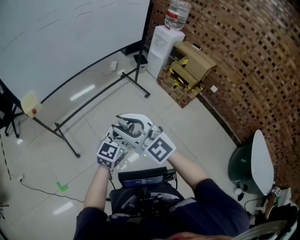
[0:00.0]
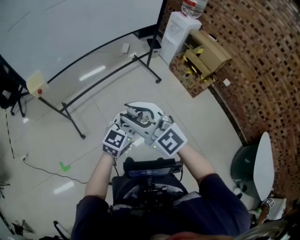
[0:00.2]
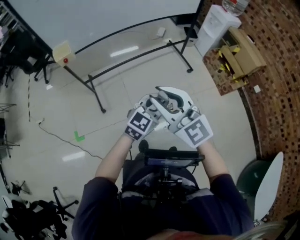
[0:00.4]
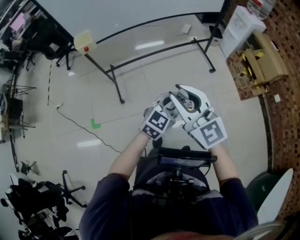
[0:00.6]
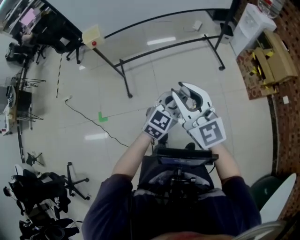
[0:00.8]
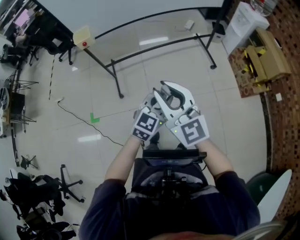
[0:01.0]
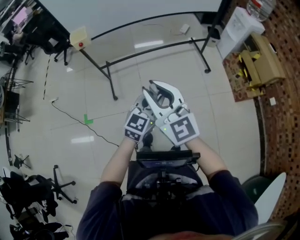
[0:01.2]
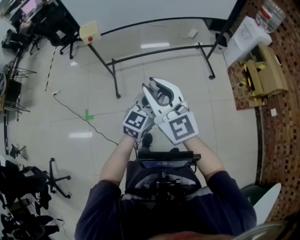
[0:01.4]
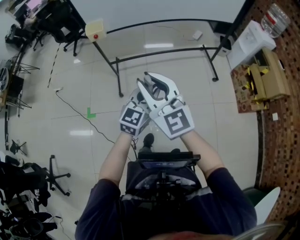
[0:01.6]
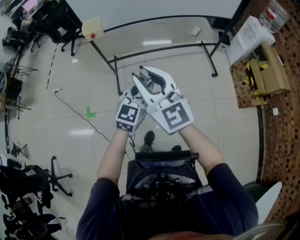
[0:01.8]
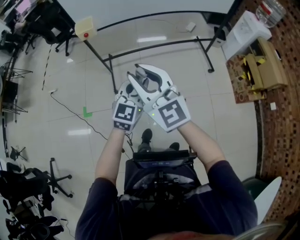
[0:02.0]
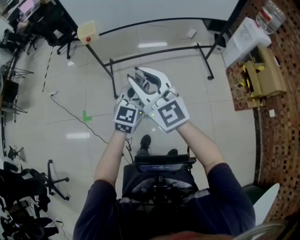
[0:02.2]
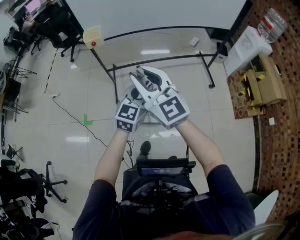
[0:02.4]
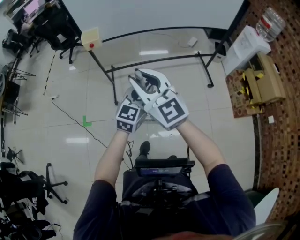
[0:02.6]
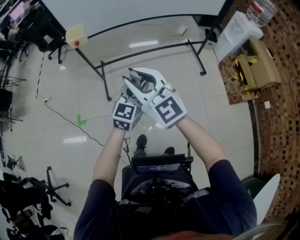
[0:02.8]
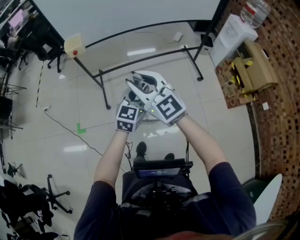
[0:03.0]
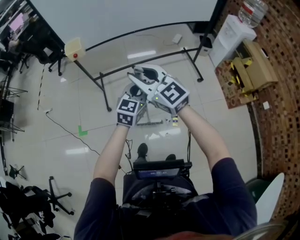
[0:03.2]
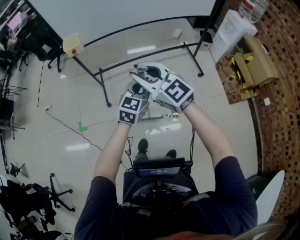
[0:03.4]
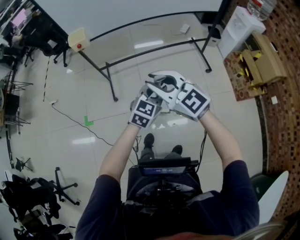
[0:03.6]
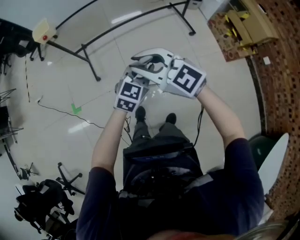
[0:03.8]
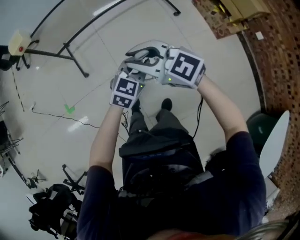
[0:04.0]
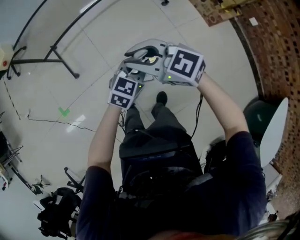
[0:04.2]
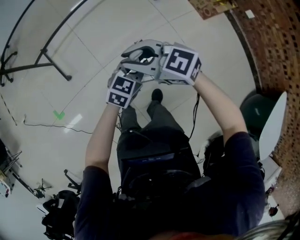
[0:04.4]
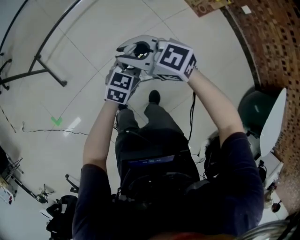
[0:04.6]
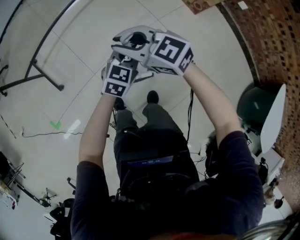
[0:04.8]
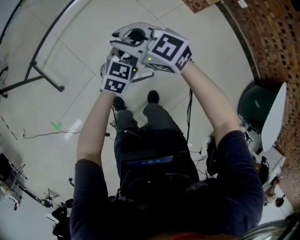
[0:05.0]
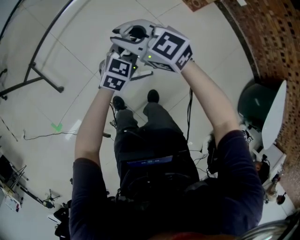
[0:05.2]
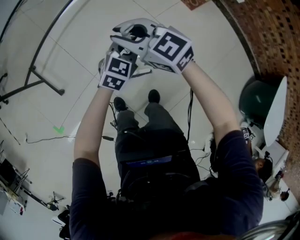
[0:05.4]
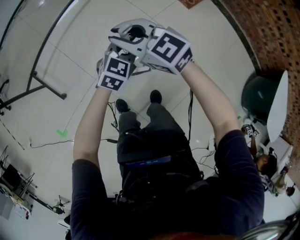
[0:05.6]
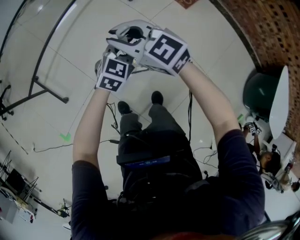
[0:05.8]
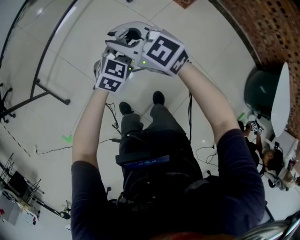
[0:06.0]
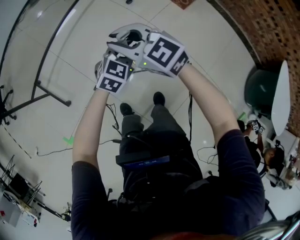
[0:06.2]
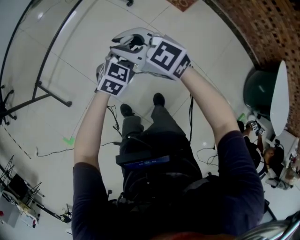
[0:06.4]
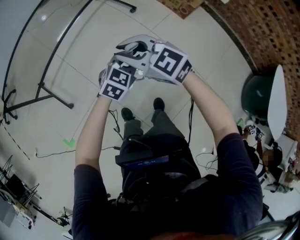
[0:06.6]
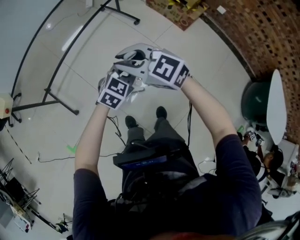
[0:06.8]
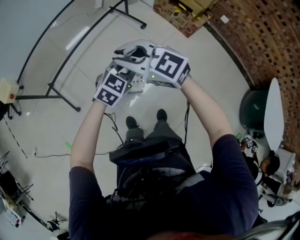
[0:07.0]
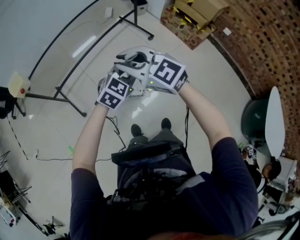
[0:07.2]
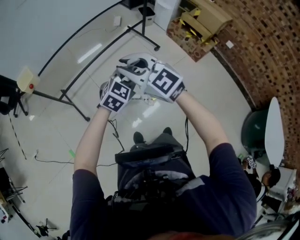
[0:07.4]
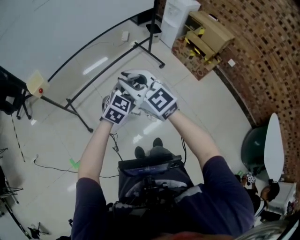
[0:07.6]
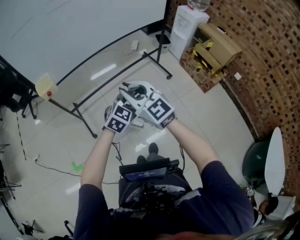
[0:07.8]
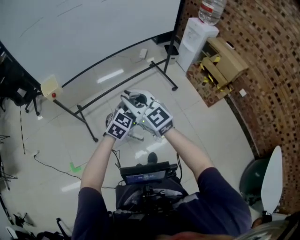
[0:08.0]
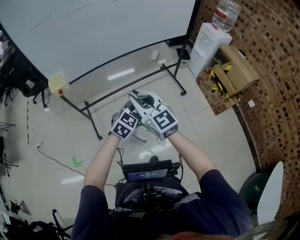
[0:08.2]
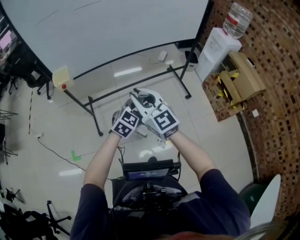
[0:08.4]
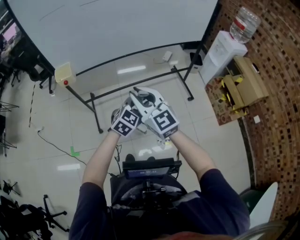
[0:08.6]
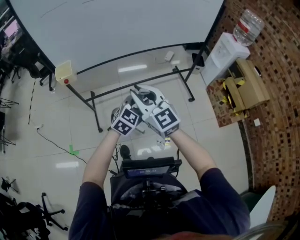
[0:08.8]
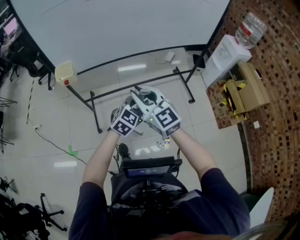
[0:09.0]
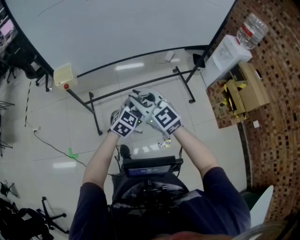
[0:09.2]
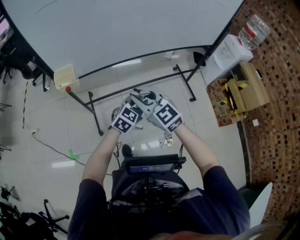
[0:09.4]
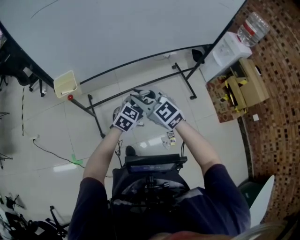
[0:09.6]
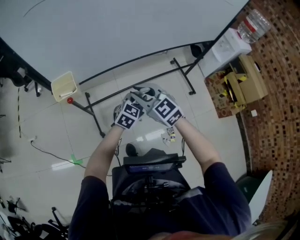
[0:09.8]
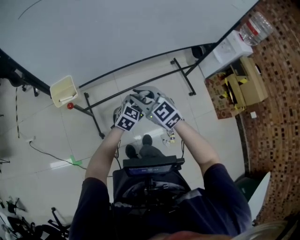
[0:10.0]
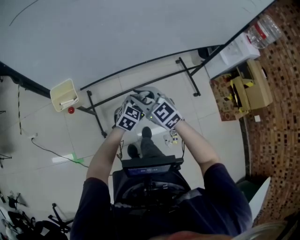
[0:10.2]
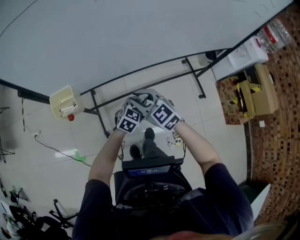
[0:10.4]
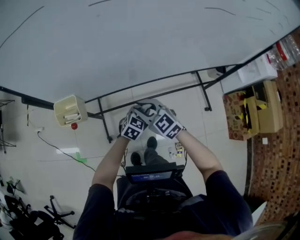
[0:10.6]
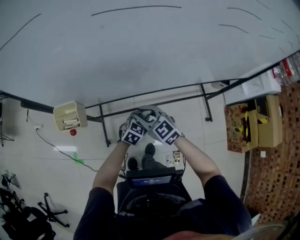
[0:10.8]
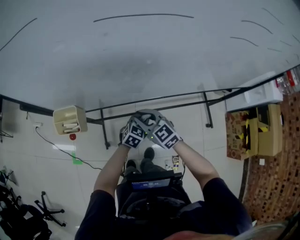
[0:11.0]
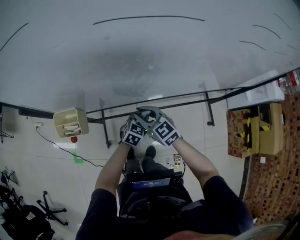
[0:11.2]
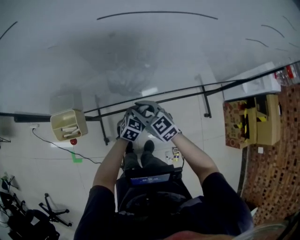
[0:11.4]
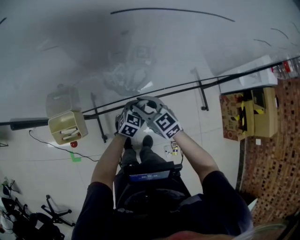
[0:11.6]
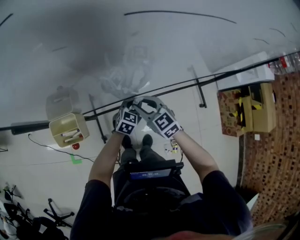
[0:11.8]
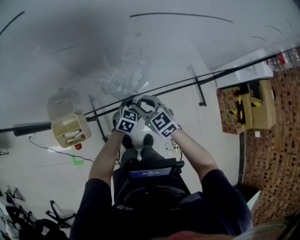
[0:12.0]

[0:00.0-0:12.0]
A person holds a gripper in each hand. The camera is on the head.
0:00.0 to 0:01.6: The right gripper travels to the right and back again, some 5 cm each way, and turns by approximately 20 degrees; the left gripper shifts approximately 5 cm to the left, and rotates about 30 degrees.
0:01.6 to 0:03.0: The two grippers go some 5 cm forward.
0:03.0 to 0:04.4: The right gripper shifts approximately 30 cm downward and to the right, and turns by about 30 degrees. The left gripper travels downward, to the right and backward by roughly 35 cm, and swivels about 40 degrees.
0:04.4 to 0:06.0: Both grippers travel together forward and to the right, approximately 10 cm. The left gripper changes its angle by some 20 degrees; the right gripper turns by roughly 30 degrees.
0:06.0 to 0:07.6: Both grippers travel together to the left and upward, some 35 cm.
0:07.6 to 0:09.0: Both grippers move forward and to the left, about 15 cm.
0:09.0 to 0:10.4: Both grippers move forward, downward and to the left, roughly 30 cm. The right gripper swivels about 20 degrees.
0:10.4 to 0:12.0: The grippers both shift forward and downward by some 15 cm.

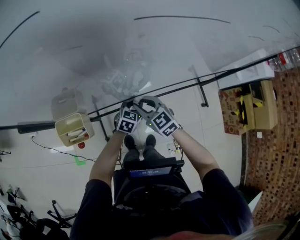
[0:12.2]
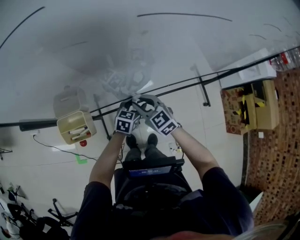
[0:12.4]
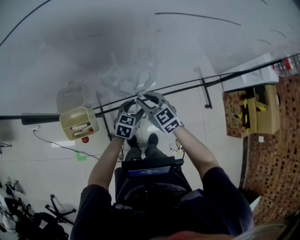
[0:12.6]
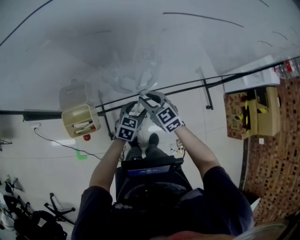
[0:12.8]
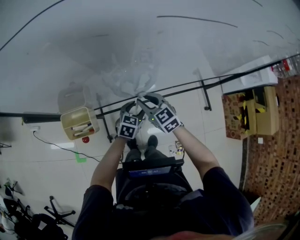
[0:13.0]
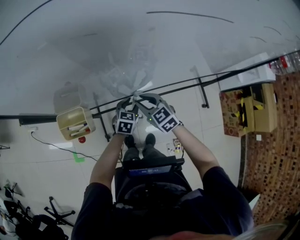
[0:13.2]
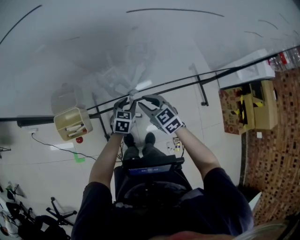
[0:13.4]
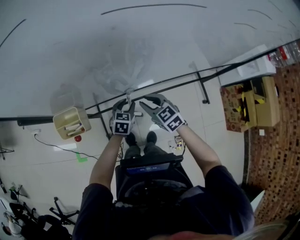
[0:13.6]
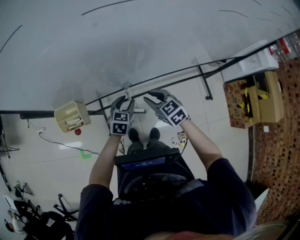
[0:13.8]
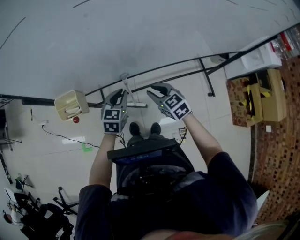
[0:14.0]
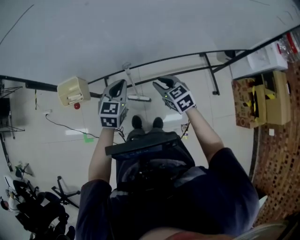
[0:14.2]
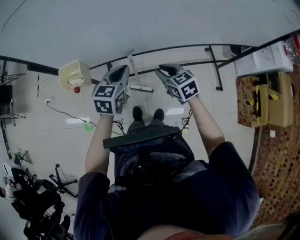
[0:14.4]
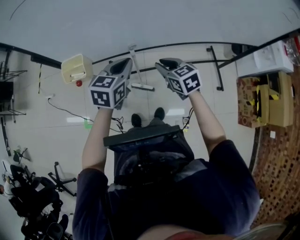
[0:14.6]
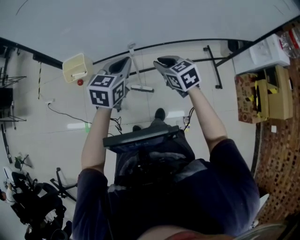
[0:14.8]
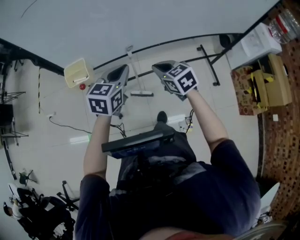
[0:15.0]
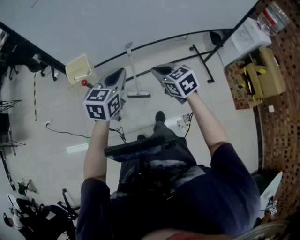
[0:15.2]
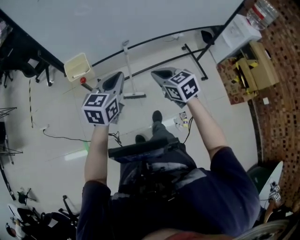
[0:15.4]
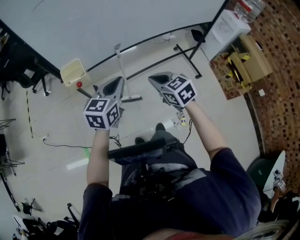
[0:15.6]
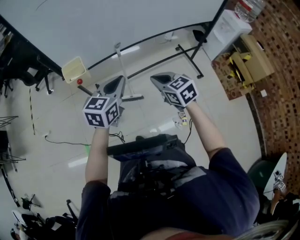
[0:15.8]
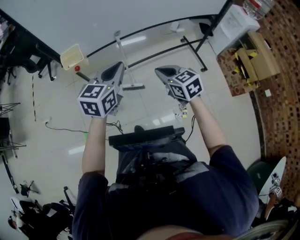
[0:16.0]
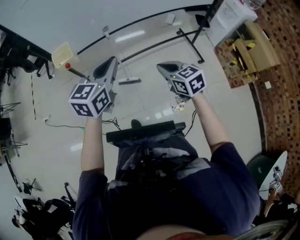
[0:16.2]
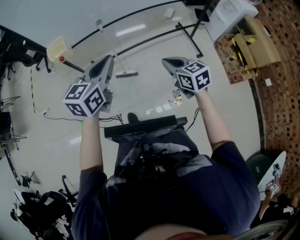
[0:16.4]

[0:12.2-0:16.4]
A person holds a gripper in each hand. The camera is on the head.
0:12.2 to 0:13.6: The left gripper opens and closes again.
0:13.6 to 0:15.0: The right gripper moves backward and upward, about 15 cm, and closes up, while the left gripper is displaced upward and backward by about 30 cm, and closes its fingers.
0:15.0 to 0:16.4: The right gripper is displaced backward and to the right by about 30 cm. The left gripper goes roughly 20 cm backward.

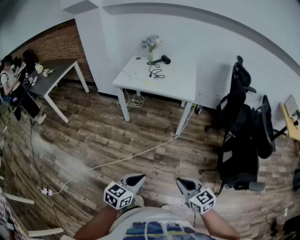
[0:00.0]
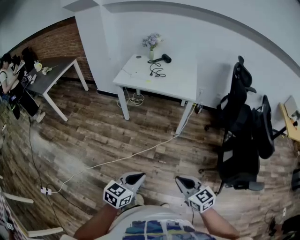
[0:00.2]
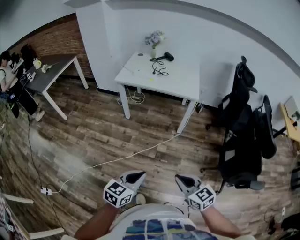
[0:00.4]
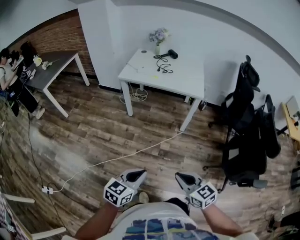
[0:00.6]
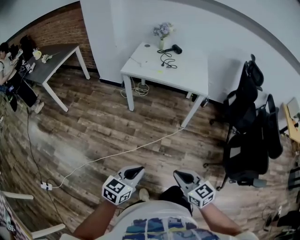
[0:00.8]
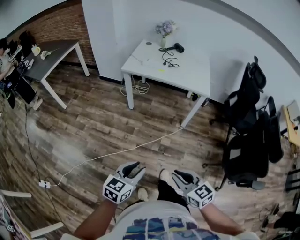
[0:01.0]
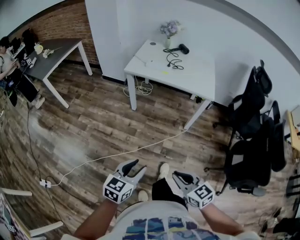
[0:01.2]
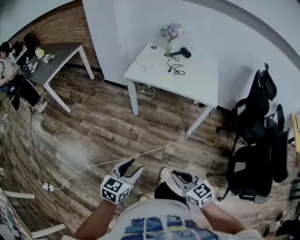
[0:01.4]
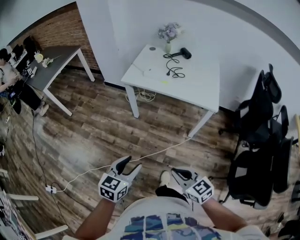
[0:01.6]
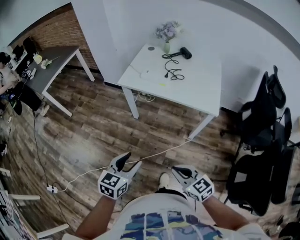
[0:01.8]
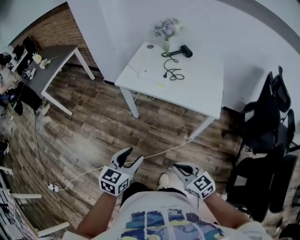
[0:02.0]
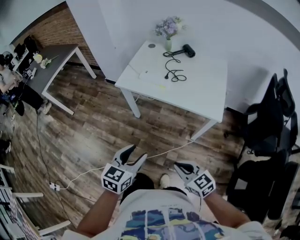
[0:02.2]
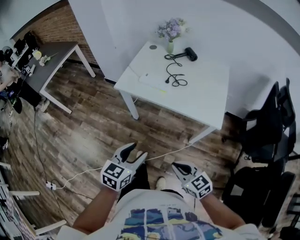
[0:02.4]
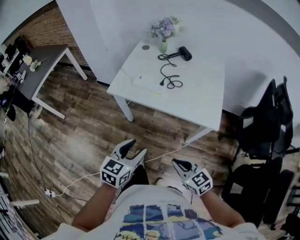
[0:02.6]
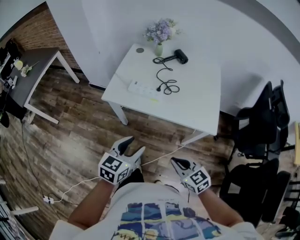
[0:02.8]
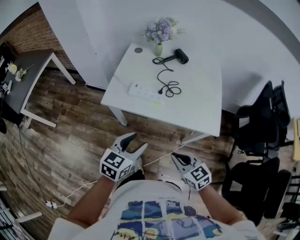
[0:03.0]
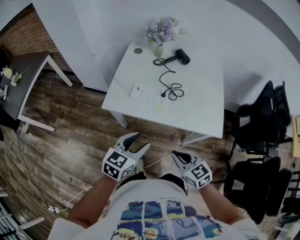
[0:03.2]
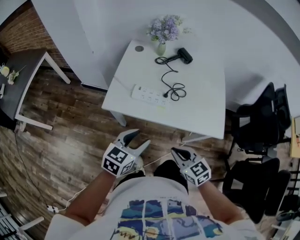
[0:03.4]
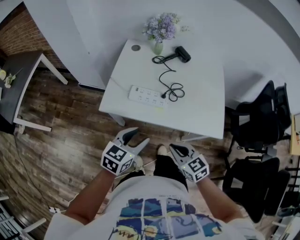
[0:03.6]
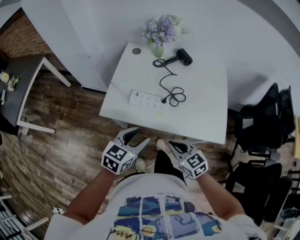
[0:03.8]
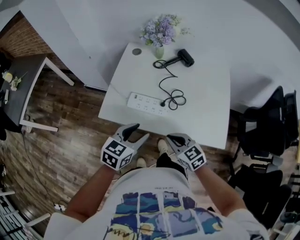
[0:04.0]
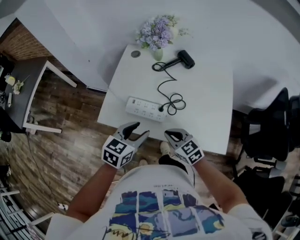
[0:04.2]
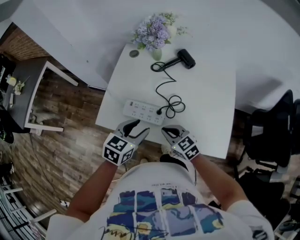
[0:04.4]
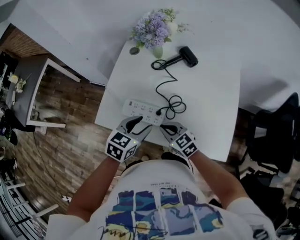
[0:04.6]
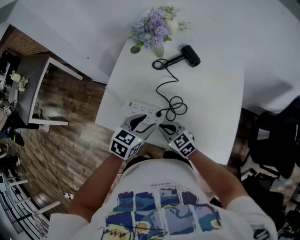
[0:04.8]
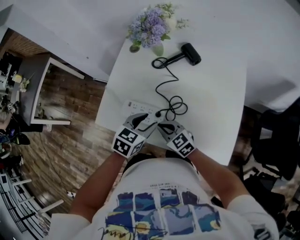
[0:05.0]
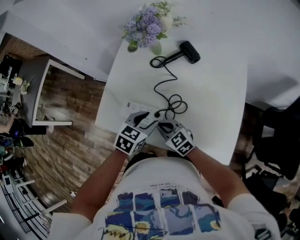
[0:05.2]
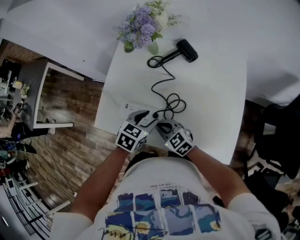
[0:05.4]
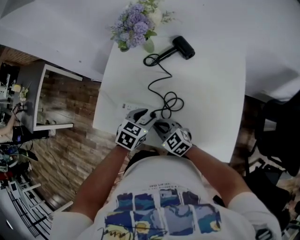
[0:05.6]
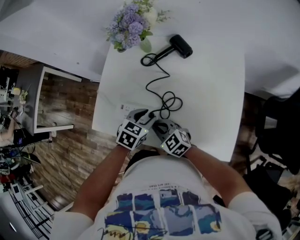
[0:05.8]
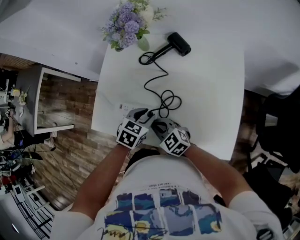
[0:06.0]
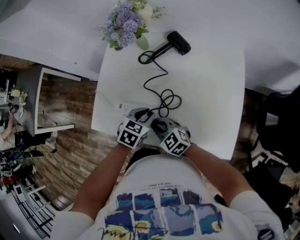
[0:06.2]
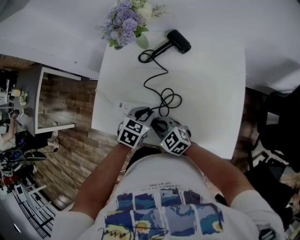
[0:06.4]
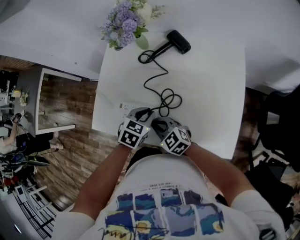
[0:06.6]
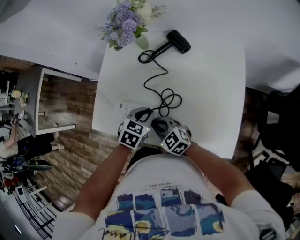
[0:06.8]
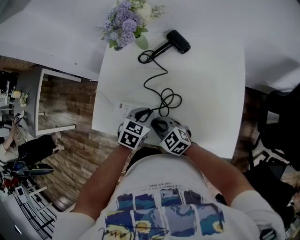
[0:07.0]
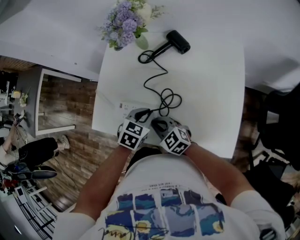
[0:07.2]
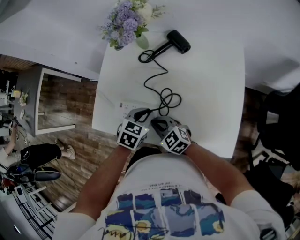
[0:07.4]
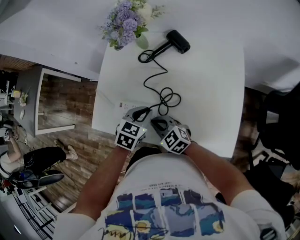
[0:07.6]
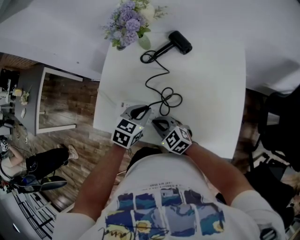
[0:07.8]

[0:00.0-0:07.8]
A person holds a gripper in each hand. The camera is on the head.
0:00.0 to 0:01.6: Both grippers travel together forward and to the left, roughly 30 cm. The left gripper opens up.
0:01.6 to 0:03.2: Both grippers are carried forward, about 40 cm.
0:03.2 to 0:04.6: Both grippers move forward, some 25 cm.
0:04.6 to 0:06.2: The left gripper goes roughly 15 cm downward, to the right and forward, and closes its fingers.
0:06.2 to 0:07.8: There are only small adjustments of the grippers.
